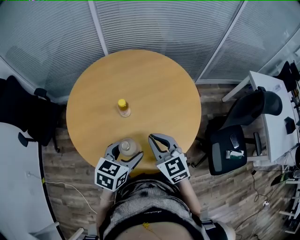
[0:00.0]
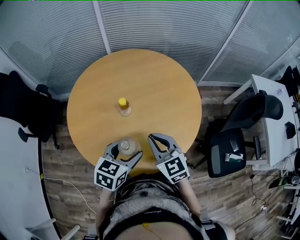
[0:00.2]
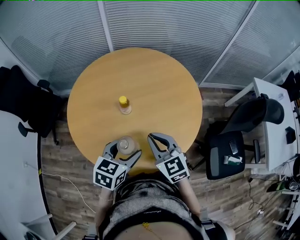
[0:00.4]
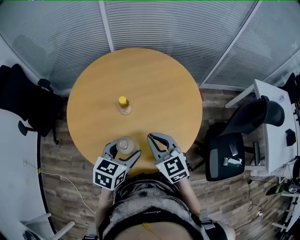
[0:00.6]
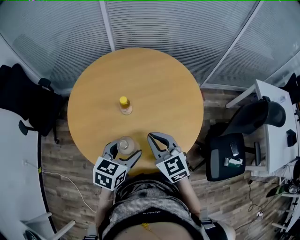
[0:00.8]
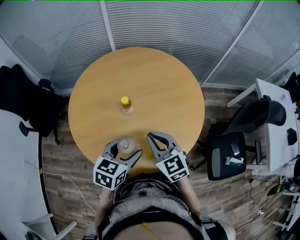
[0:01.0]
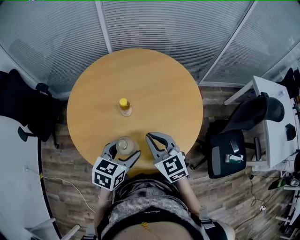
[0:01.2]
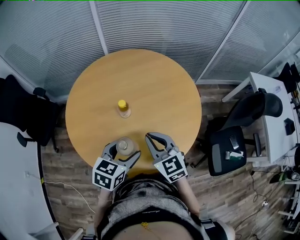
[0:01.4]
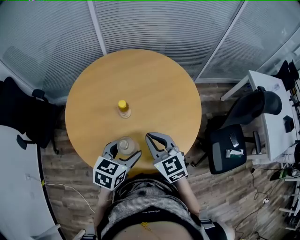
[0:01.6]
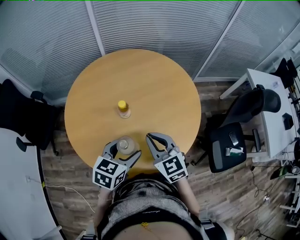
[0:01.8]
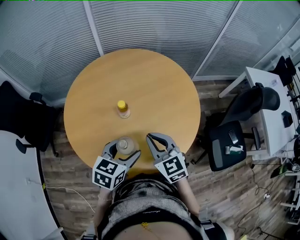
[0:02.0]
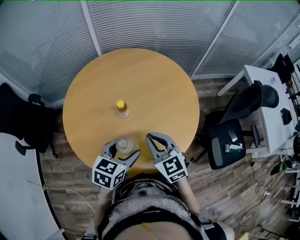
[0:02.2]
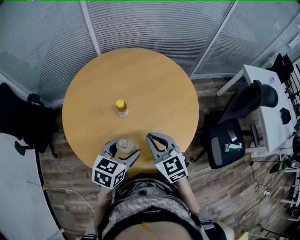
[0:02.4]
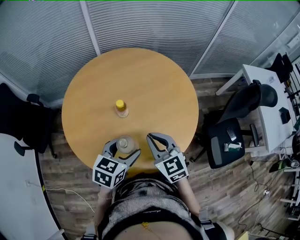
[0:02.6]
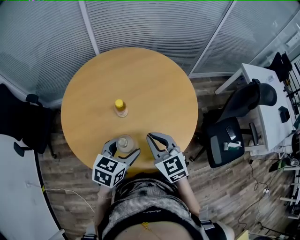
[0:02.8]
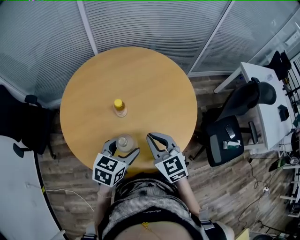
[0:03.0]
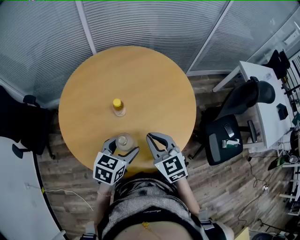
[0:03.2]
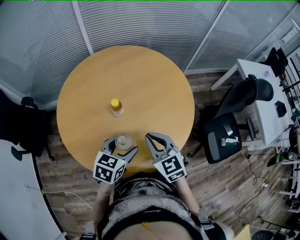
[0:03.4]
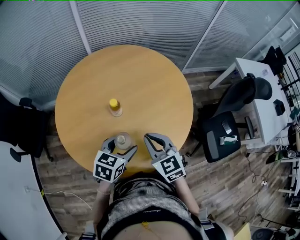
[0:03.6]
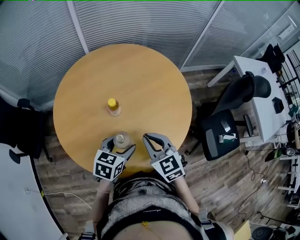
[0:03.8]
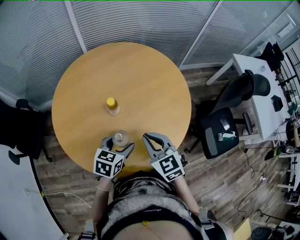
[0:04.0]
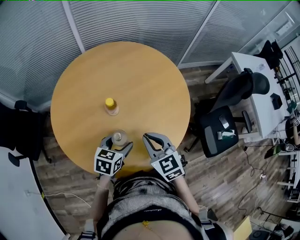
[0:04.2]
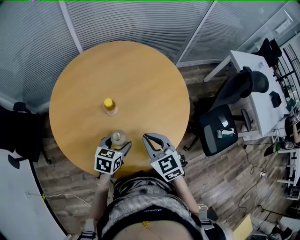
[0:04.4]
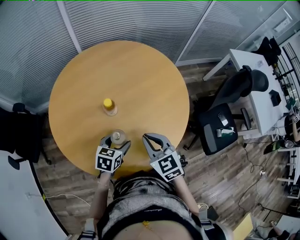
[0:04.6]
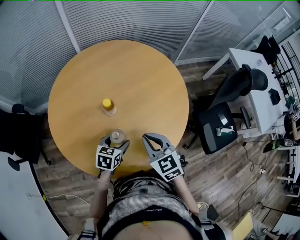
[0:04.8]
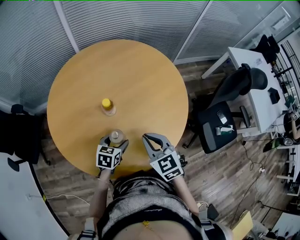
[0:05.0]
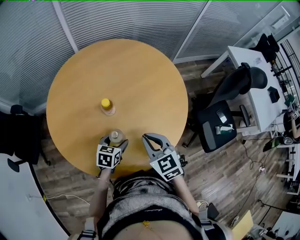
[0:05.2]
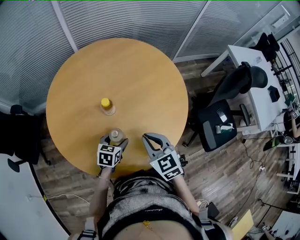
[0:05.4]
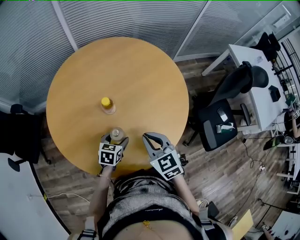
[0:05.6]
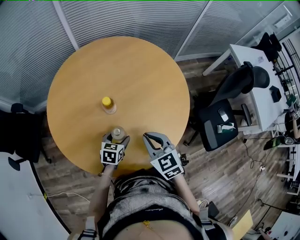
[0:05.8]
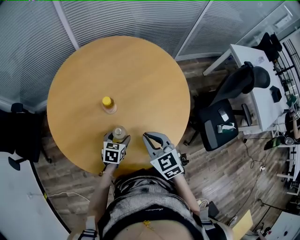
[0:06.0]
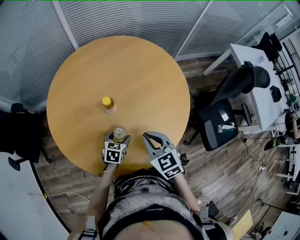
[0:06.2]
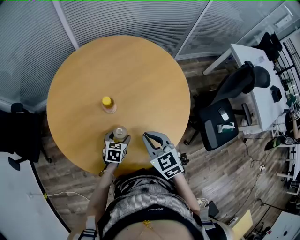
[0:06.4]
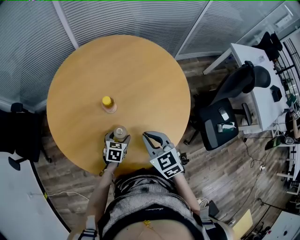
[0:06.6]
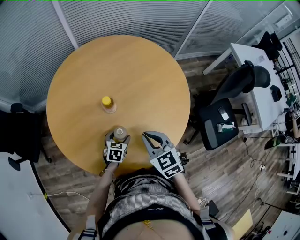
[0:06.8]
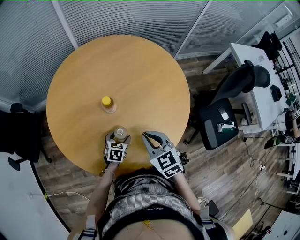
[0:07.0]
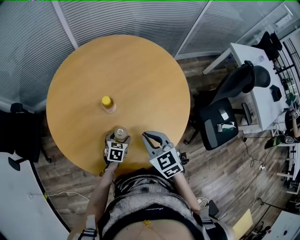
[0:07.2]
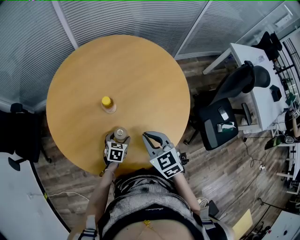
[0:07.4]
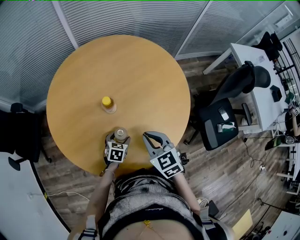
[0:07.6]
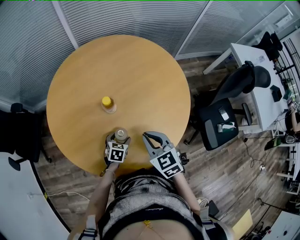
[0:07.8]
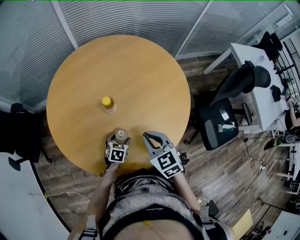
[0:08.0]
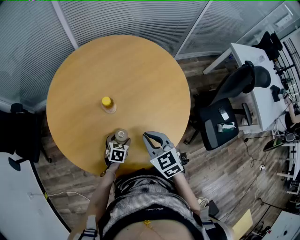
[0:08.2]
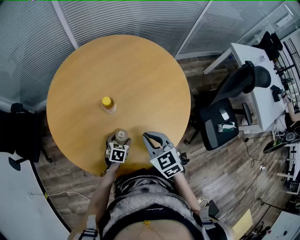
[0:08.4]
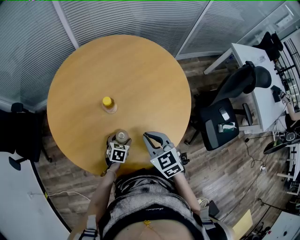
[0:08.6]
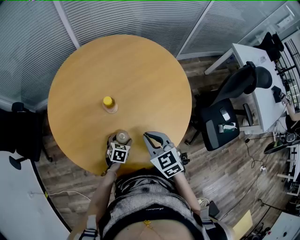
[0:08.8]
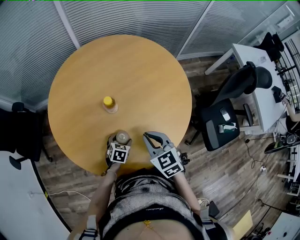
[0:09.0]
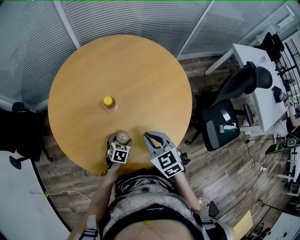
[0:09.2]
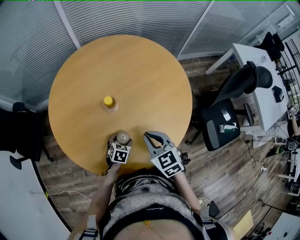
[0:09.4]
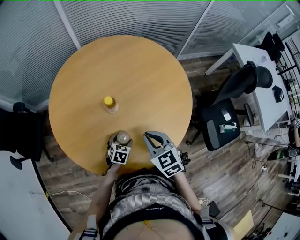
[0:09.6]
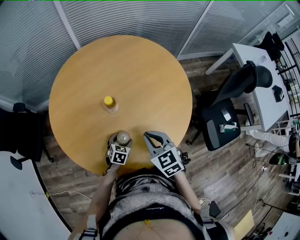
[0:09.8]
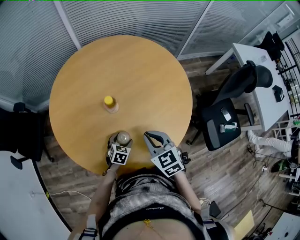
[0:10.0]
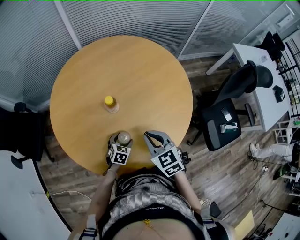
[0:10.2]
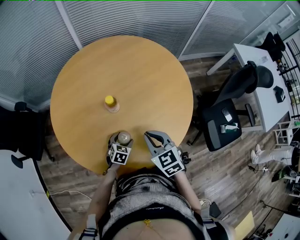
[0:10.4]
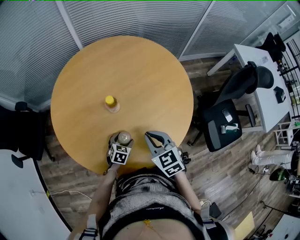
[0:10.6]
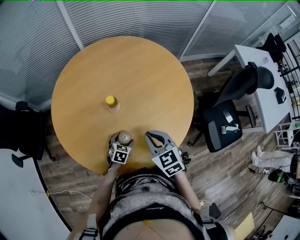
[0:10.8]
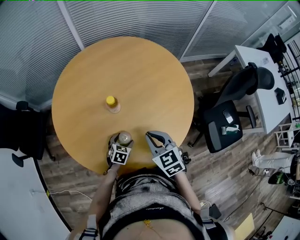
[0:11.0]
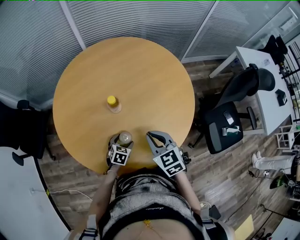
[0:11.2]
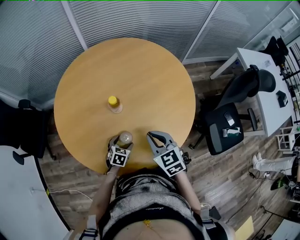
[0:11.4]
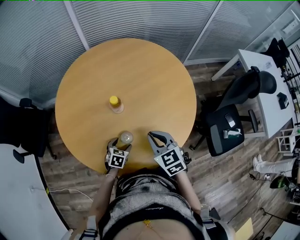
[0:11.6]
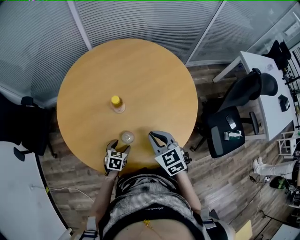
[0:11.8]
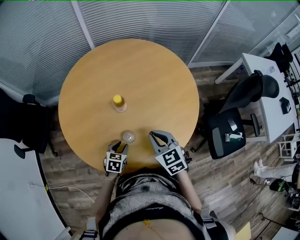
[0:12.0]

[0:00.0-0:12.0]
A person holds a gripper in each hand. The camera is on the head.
0:00.0 to 0:03.0: The grippers stay close to where they were, moving slightly.
0:03.0 to 0:04.4: The left gripper is displaced downward by approximately 10 cm.
0:04.4 to 0:06.0: The left gripper is displaced downward by roughly 10 cm.
0:06.0 to 0:07.6: The grippers make only small movements.
0:07.6 to 0:10.4: There are only small adjustments of the grippers.
0:10.4 to 0:12.0: The left gripper ends up some 5 cm from where it was, and closes.

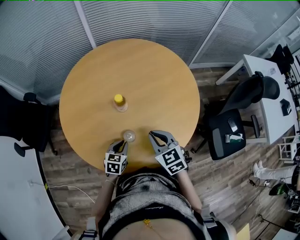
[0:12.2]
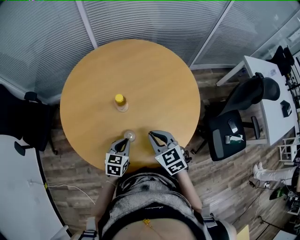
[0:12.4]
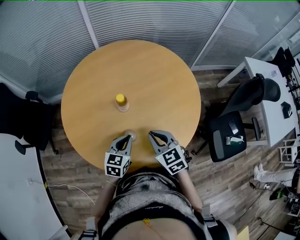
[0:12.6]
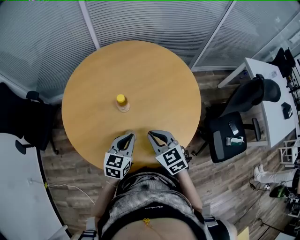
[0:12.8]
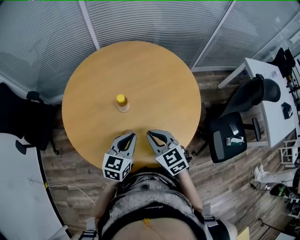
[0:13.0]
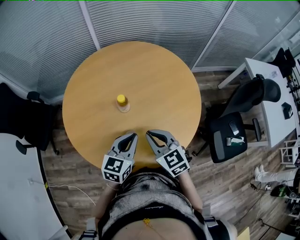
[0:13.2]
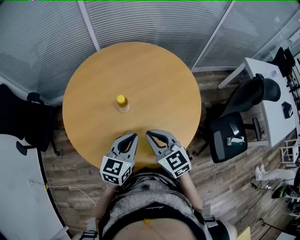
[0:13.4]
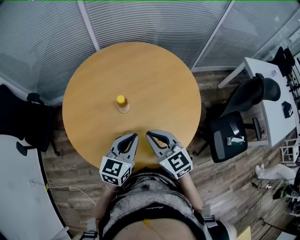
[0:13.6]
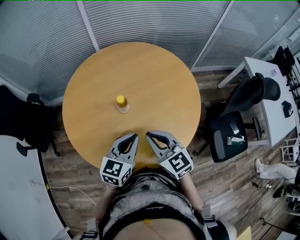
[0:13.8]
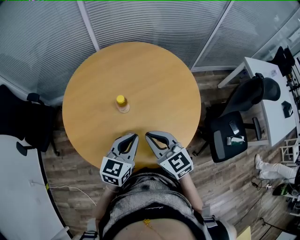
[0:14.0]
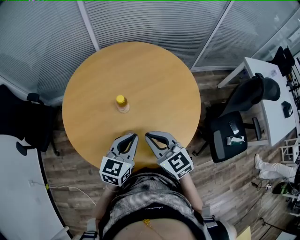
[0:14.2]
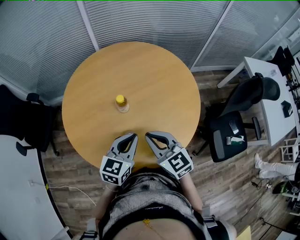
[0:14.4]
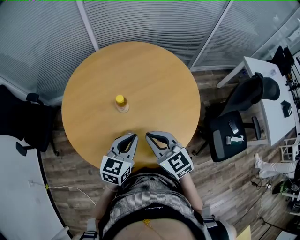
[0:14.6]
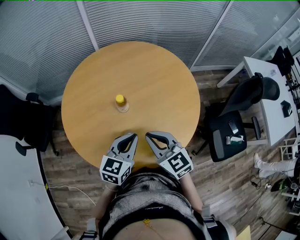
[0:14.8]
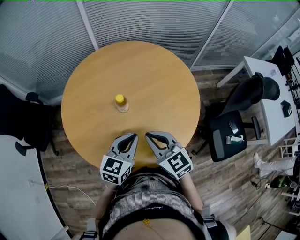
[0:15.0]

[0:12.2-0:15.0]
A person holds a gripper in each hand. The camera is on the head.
0:12.2 to 0:13.6: The left gripper is displaced upward by some 20 cm, and changes its angle by approximately 30 degrees. The right gripper heads upward, covering roughly 5 cm.
0:13.6 to 0:15.0: Neither gripper changes place.

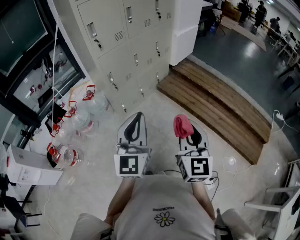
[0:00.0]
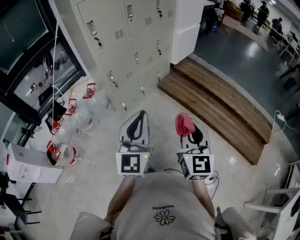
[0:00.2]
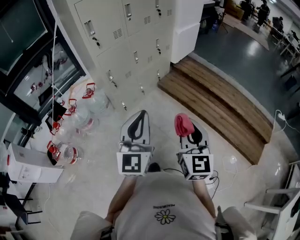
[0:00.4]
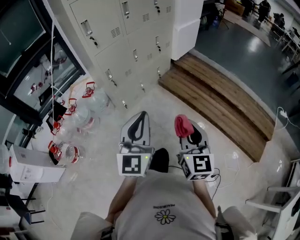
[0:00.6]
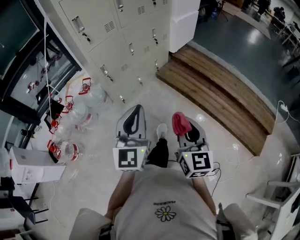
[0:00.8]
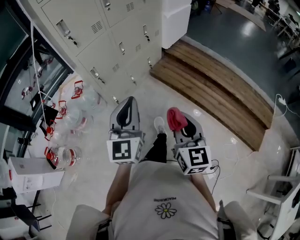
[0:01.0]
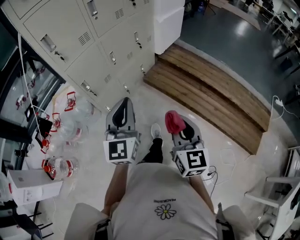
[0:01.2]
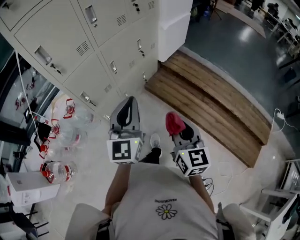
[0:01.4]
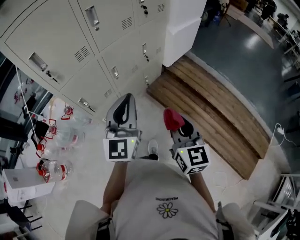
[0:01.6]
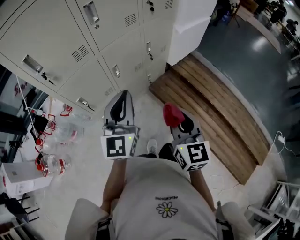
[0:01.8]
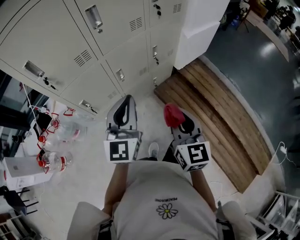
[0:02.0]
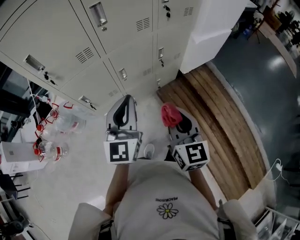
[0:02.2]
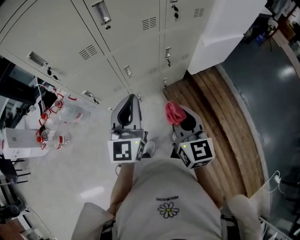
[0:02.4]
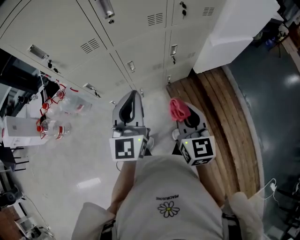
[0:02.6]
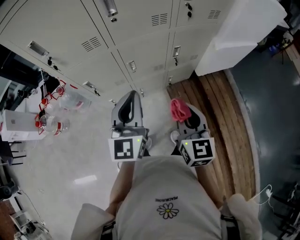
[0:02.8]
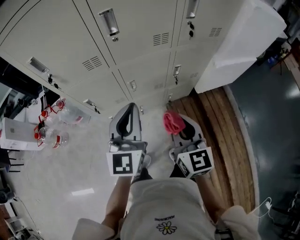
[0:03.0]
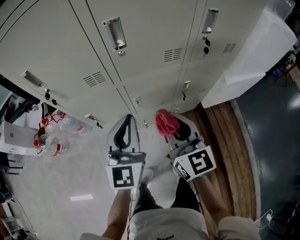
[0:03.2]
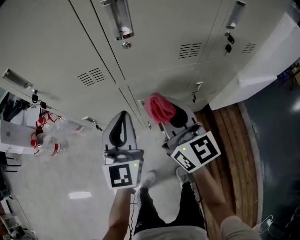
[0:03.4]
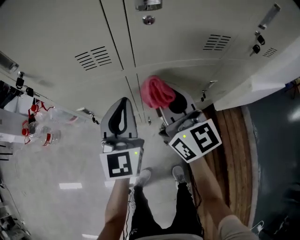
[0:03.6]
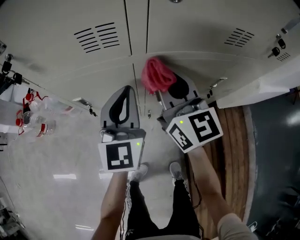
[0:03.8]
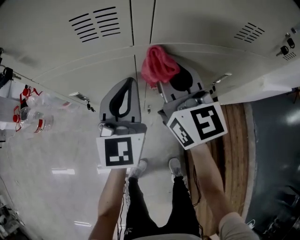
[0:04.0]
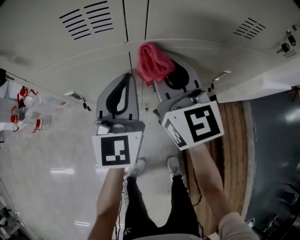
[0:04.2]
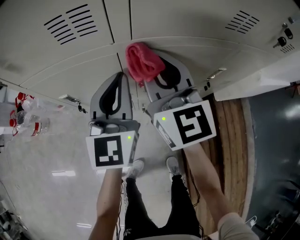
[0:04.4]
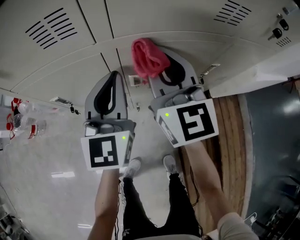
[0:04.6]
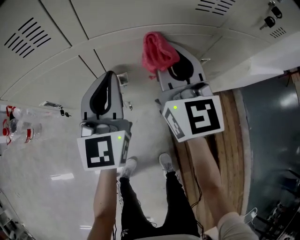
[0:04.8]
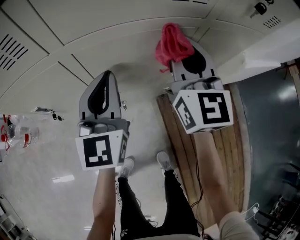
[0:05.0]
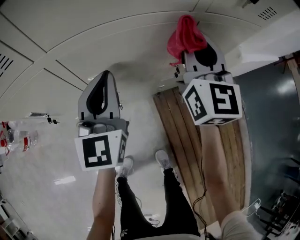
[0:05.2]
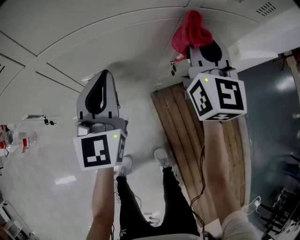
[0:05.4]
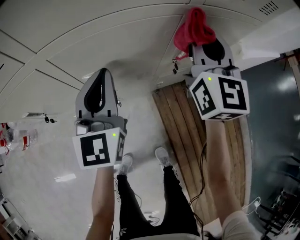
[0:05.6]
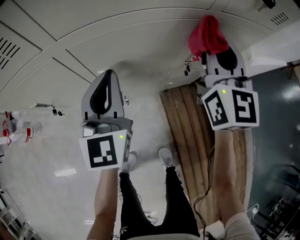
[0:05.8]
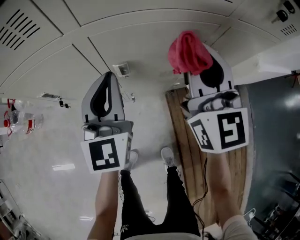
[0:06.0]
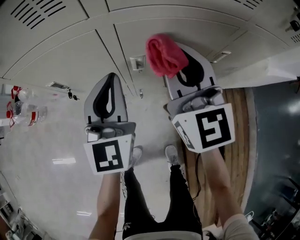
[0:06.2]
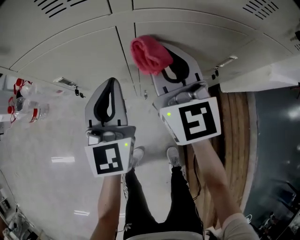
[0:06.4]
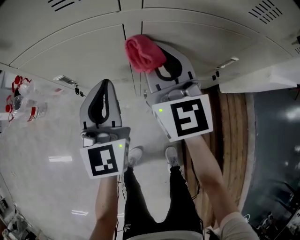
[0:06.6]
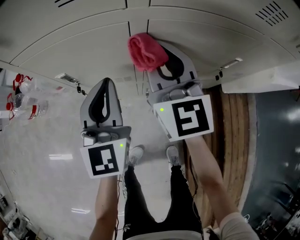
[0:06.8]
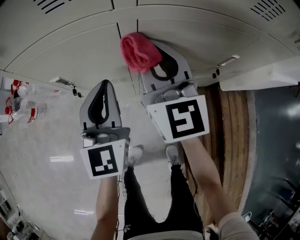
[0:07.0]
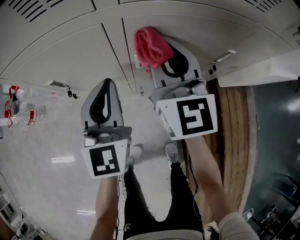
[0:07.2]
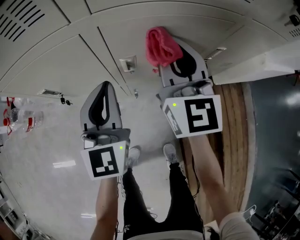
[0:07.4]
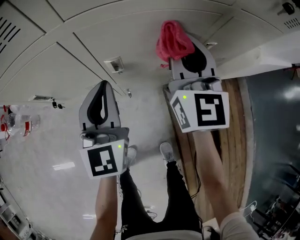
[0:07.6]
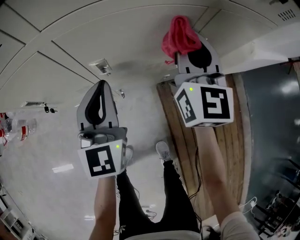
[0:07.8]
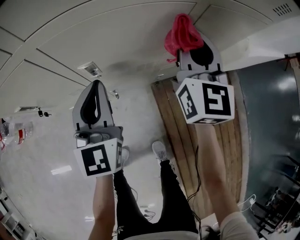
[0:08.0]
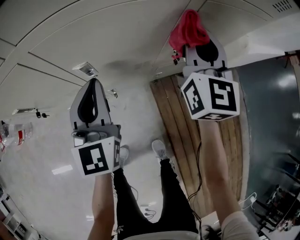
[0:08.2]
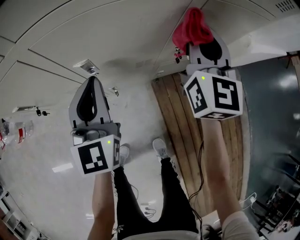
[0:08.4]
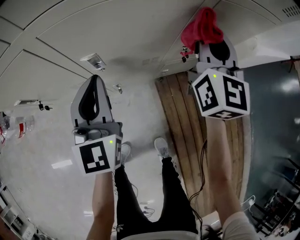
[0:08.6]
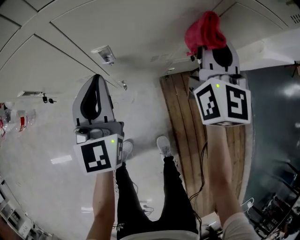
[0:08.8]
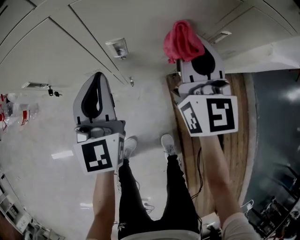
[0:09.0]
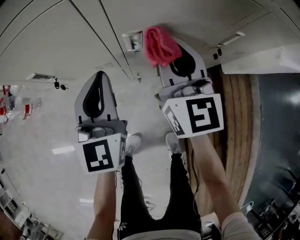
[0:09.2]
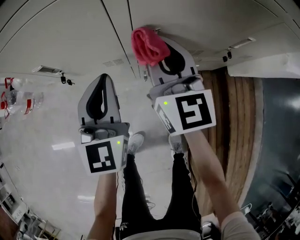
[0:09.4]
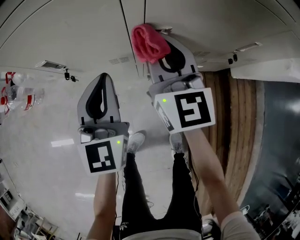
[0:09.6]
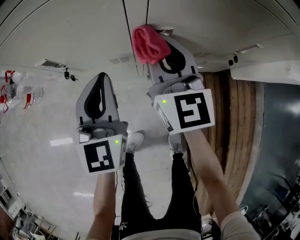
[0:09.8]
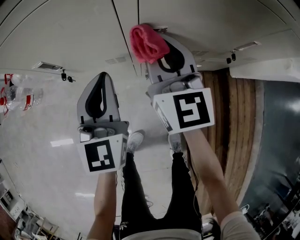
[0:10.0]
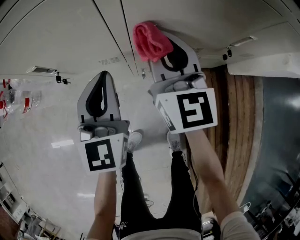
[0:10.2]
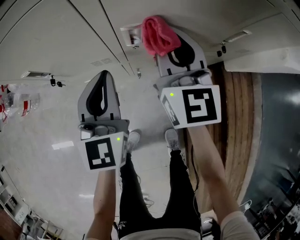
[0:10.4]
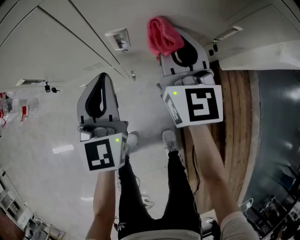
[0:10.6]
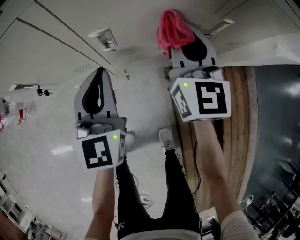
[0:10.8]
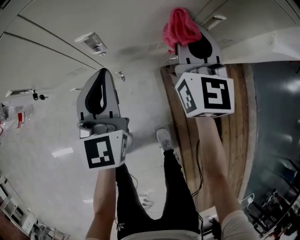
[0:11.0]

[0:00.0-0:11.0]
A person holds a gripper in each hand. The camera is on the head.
0:00.0 to 0:01.6: Both grippers travel together forward, about 35 cm.
0:01.6 to 0:03.2: The right gripper changes place by approximately 35 cm, and changes its angle by some 40 degrees. The left gripper shifts by roughly 20 cm, and swivels approximately 30 degrees.
0:03.2 to 0:04.8: The left gripper goes some 25 cm downward and forward. The right gripper is displaced forward and downward by approximately 25 cm.
0:04.8 to 0:06.2: The left gripper goes to the right and returns, approximately 10 cm each way. The right gripper moves approximately 15 cm to the right and comes back.
0:06.2 to 0:07.8: The left gripper shifts approximately 5 cm to the right. Meanwhile the right gripper heads to the right, covering some 15 cm.
0:07.8 to 0:09.4: The left gripper moves to the left, about 10 cm. Meanwhile the right gripper heads to the left and downward, covering some 20 cm, and changes its angle by some 20 degrees.
0:09.4 to 0:11.0: The right gripper shifts approximately 20 cm to the right, while the left gripper heads to the right, covering approximately 10 cm.
